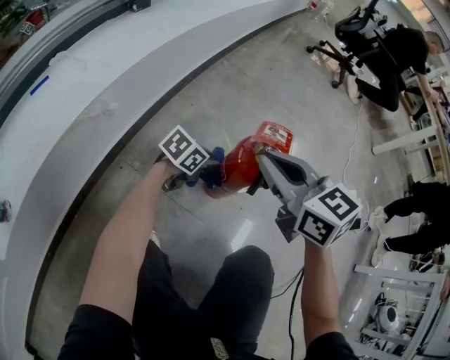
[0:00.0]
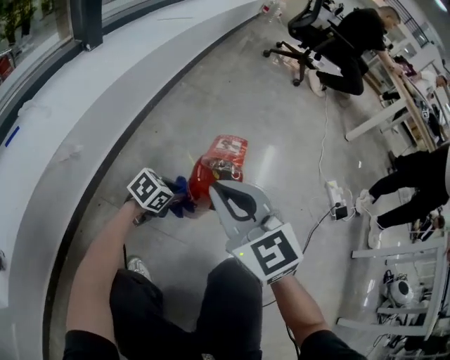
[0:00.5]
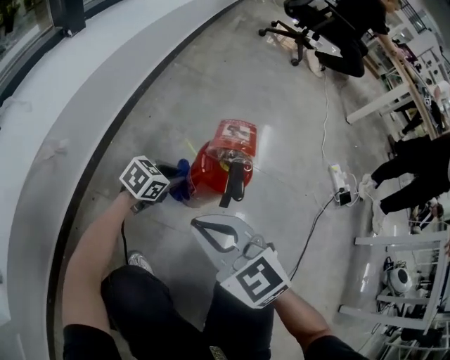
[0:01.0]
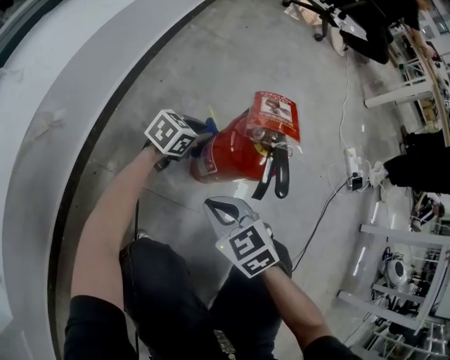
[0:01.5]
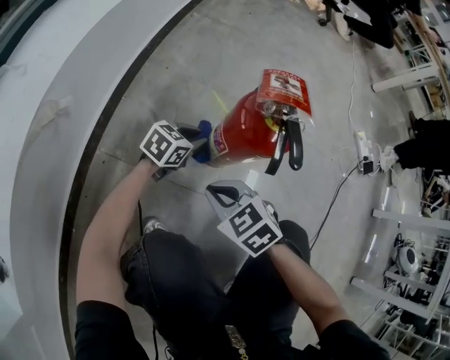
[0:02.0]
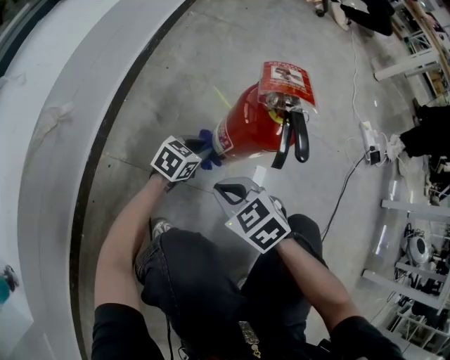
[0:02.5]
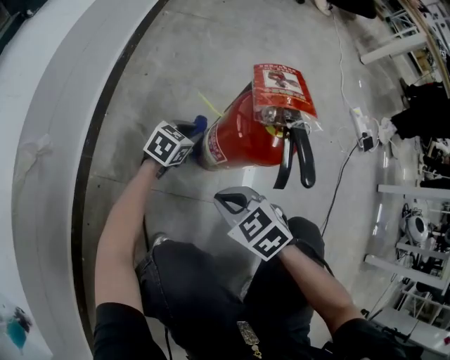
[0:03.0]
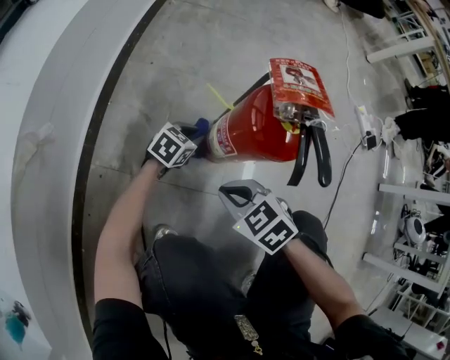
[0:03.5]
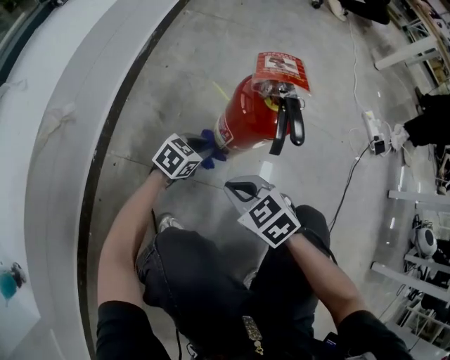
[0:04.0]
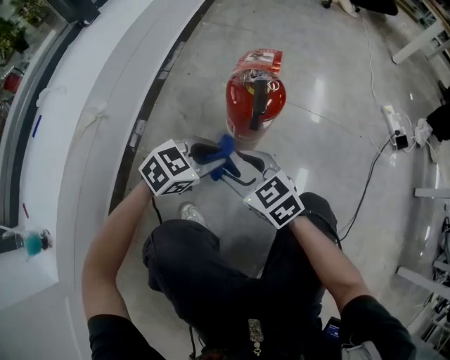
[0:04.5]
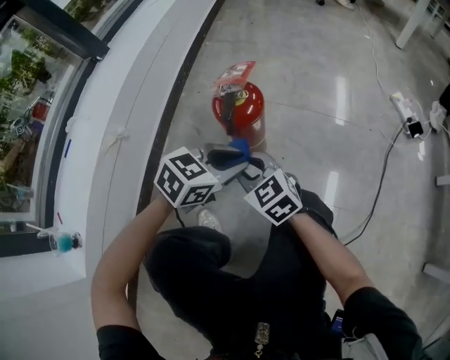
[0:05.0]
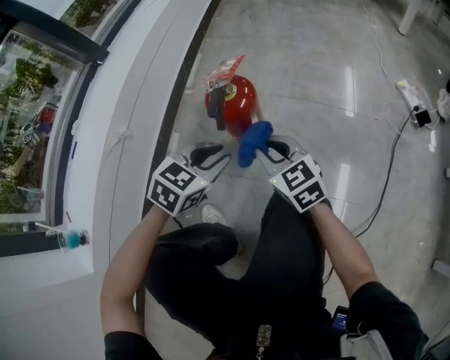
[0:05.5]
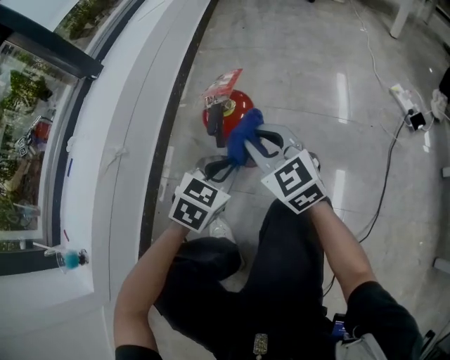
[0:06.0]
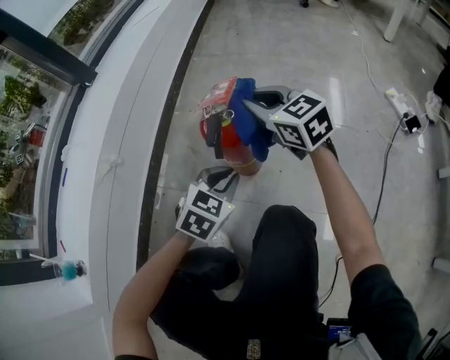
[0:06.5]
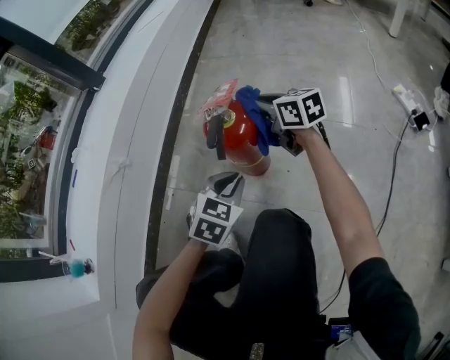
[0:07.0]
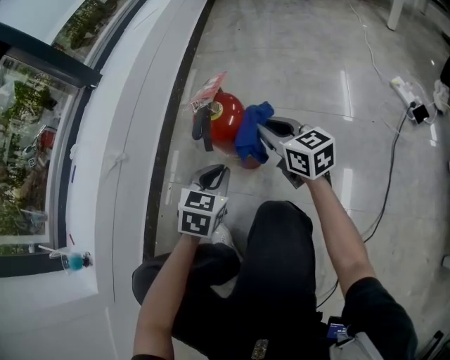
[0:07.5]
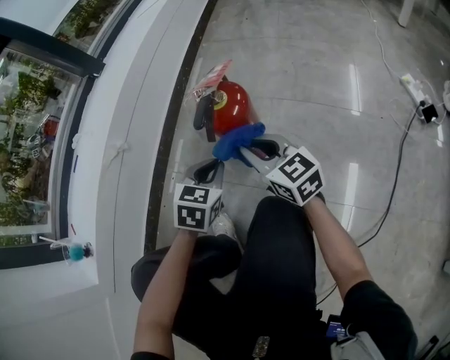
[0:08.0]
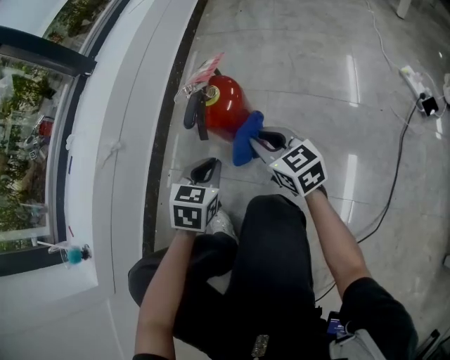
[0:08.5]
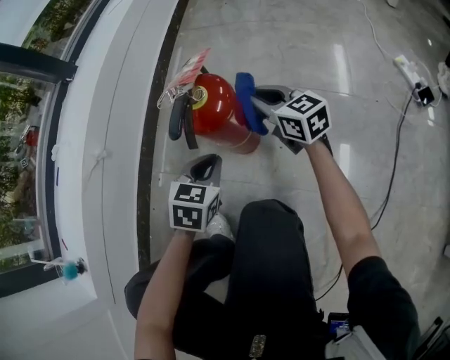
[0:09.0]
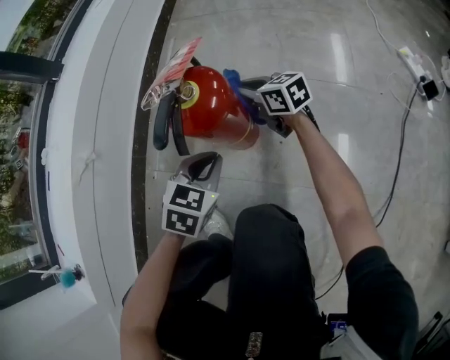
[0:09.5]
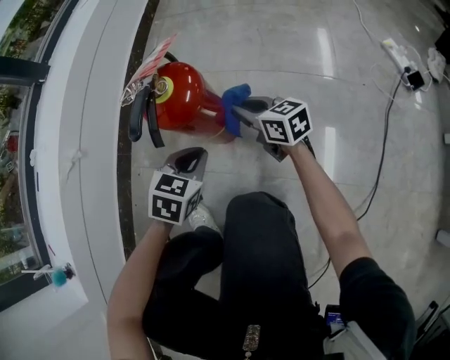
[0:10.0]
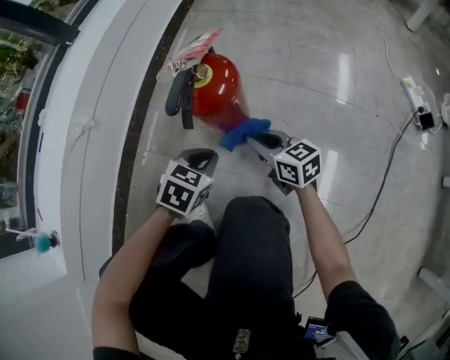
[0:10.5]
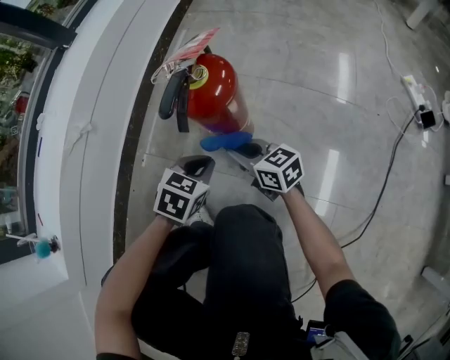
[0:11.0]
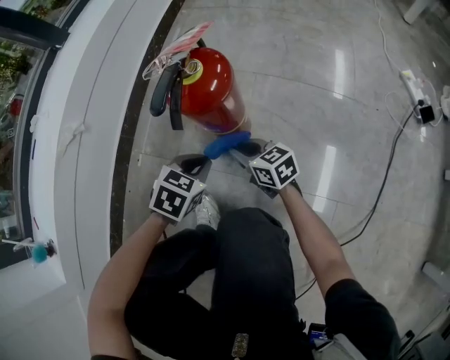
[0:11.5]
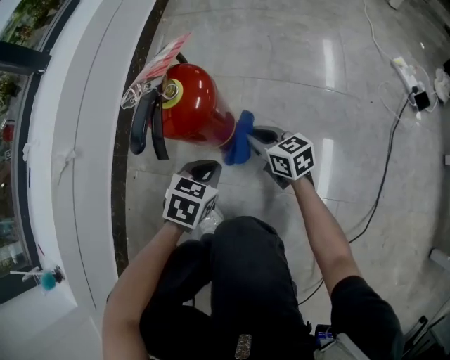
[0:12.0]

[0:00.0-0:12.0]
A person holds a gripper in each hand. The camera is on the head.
0:00.0 to 0:02.0: The left gripper goes some 10 cm downward; the right gripper shifts about 30 cm downward and backward, and changes its angle by roughly 30 degrees.
0:02.0 to 0:04.0: The left gripper moves about 5 cm.
0:04.0 to 0:06.0: The right gripper heads upward, forward and to the right, covering some 20 cm, points its fingers approximately 40 degrees further upward, and opens, then closes again. The left gripper goes roughly 25 cm upward, and swivels about 20 degrees.
0:06.0 to 0:08.0: The left gripper ends up some 5 cm from where it was, and changes its angle by roughly 20 degrees, while the right gripper is displaced downward by about 5 cm, goes forward and returns, about 15 cm each way, and rotates roughly 20 degrees.
0:08.0 to 0:10.0: The left gripper moves downward, approximately 5 cm; the right gripper goes about 15 cm downward, forward and to the right.
0:10.0 to 0:12.0: Both grippers move downward, some 5 cm. The right gripper travels to the left and back again, approximately 10 cm each way.

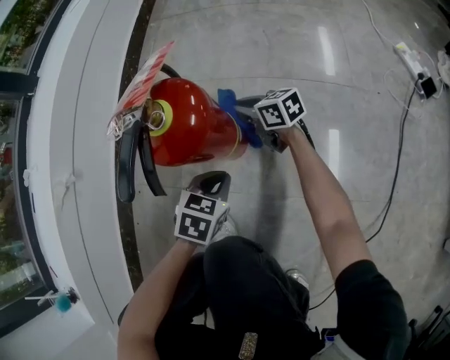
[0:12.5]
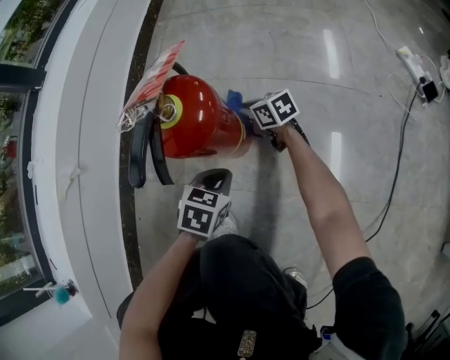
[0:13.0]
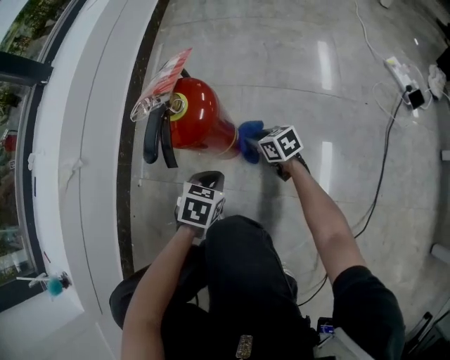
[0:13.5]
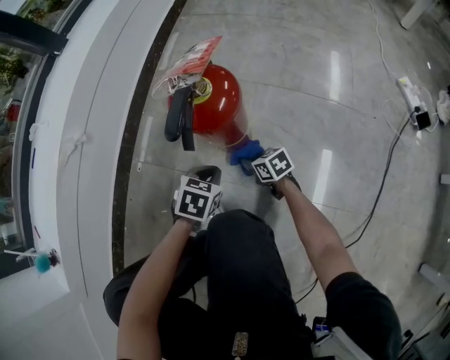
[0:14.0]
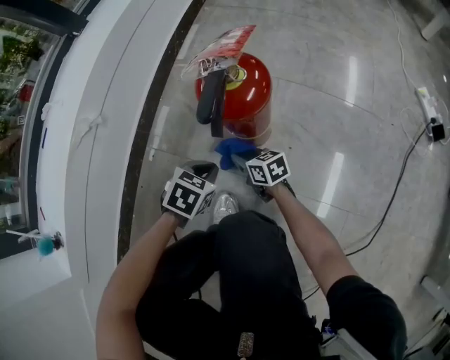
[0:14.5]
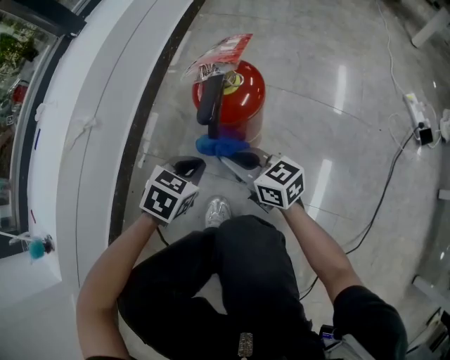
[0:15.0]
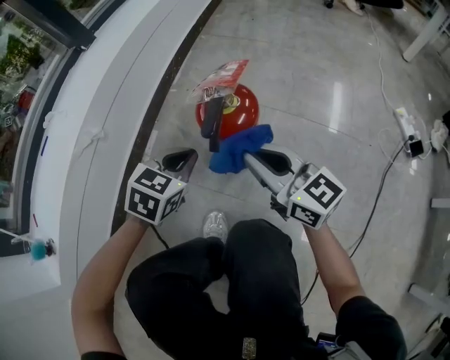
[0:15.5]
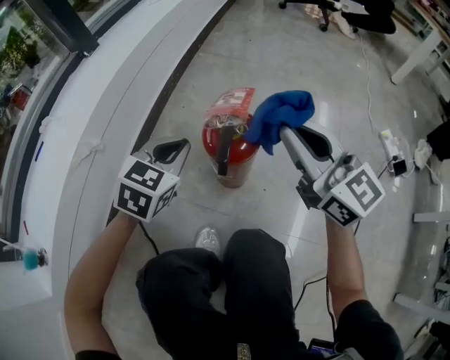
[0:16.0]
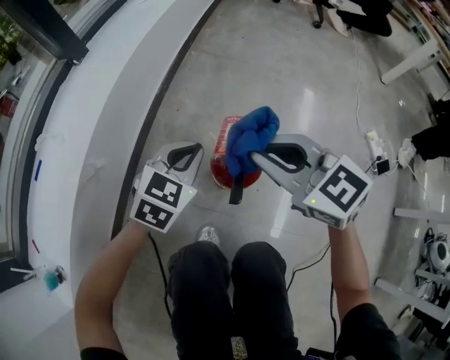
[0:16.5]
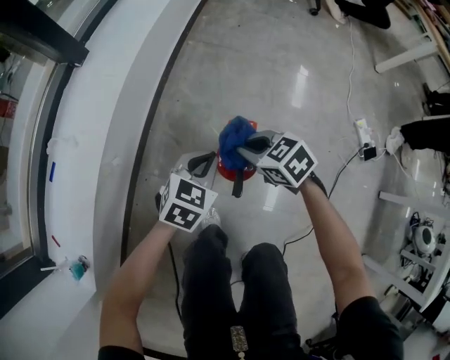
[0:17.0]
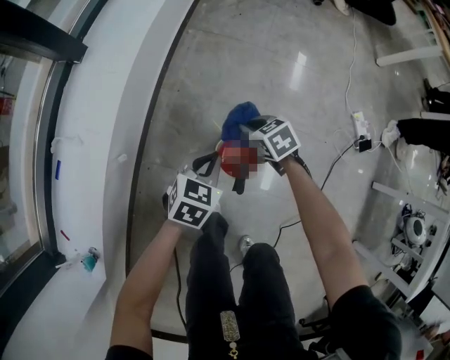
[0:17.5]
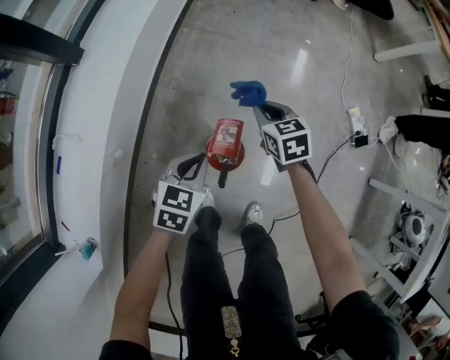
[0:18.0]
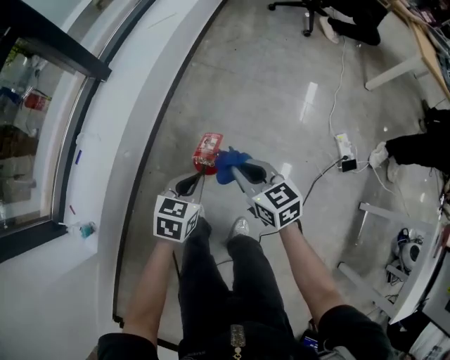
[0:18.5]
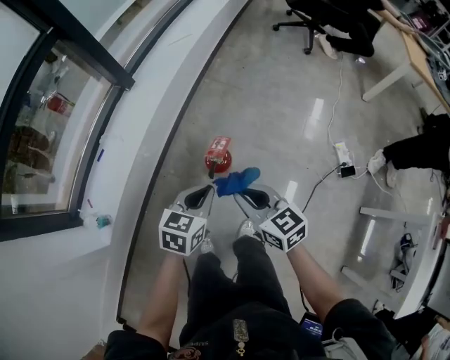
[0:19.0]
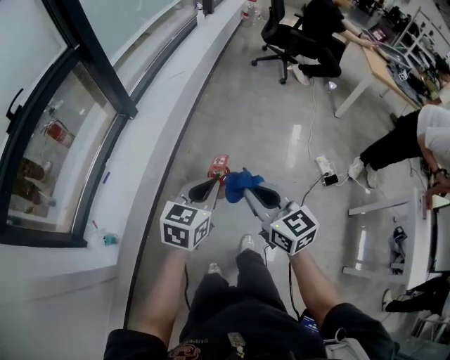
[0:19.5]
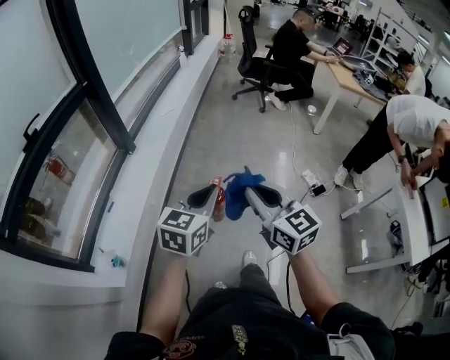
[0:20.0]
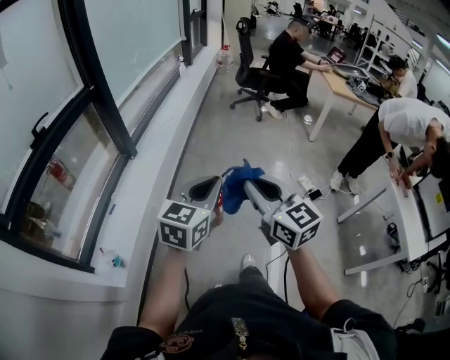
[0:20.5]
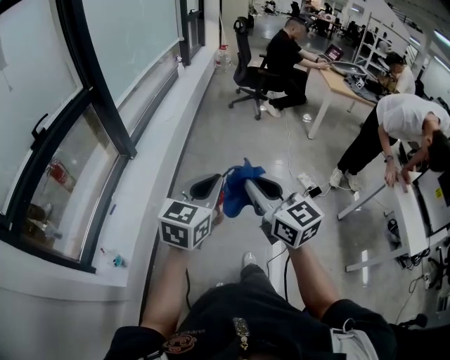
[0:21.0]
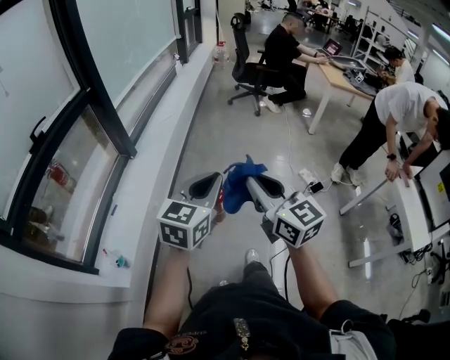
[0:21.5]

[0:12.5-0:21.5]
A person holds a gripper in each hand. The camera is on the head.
0:12.5 to 0:14.5: The left gripper goes approximately 10 cm to the left, while the right gripper travels backward and to the left by some 20 cm.
0:14.5 to 0:17.0: The left gripper is displaced upward and forward by roughly 35 cm, and changes its angle by some 20 degrees. Meanwhile the right gripper goes about 40 cm upward, and swivels some 30 degrees.
0:17.0 to 0:19.5: Both grippers travel together upward and backward, approximately 50 cm. The right gripper points its fingers about 30 degrees further upward. The left gripper turns by roughly 20 degrees.
0:19.5 to 0:21.5: The two grippers go about 20 cm upward and backward.

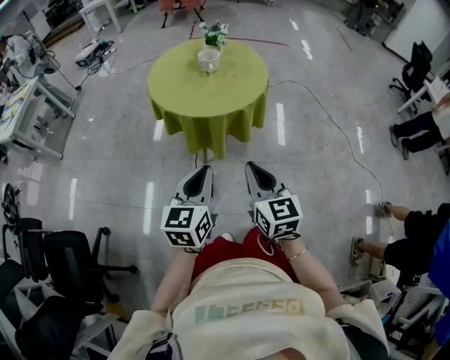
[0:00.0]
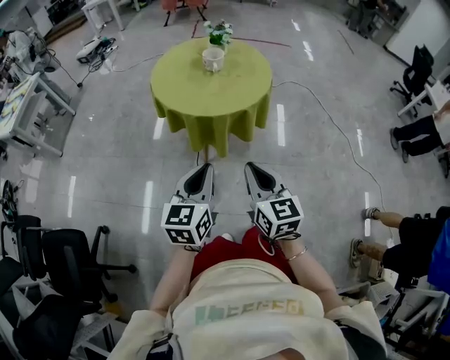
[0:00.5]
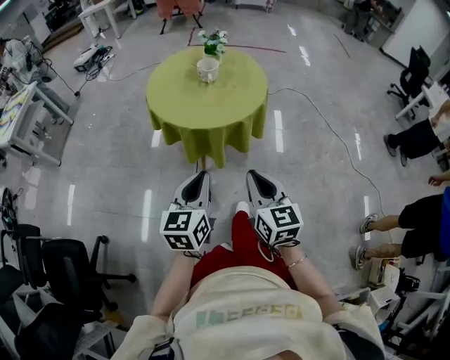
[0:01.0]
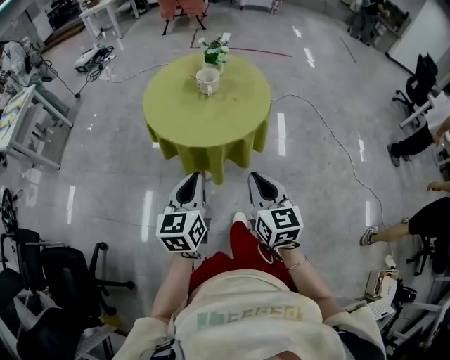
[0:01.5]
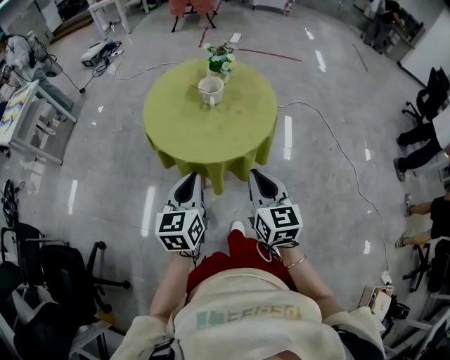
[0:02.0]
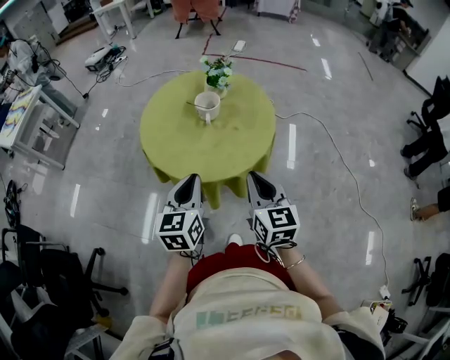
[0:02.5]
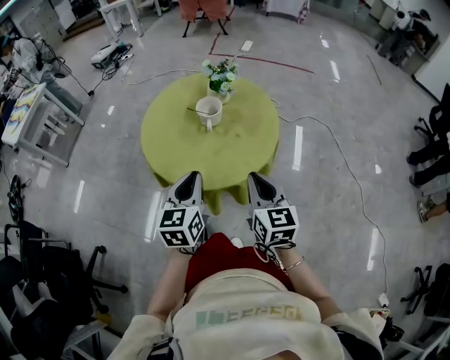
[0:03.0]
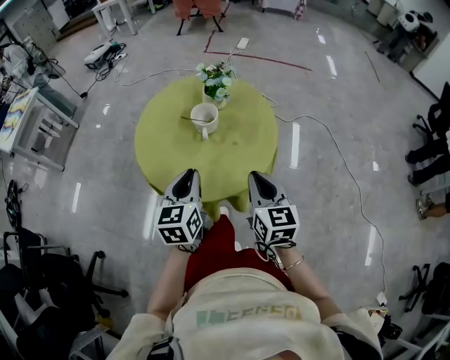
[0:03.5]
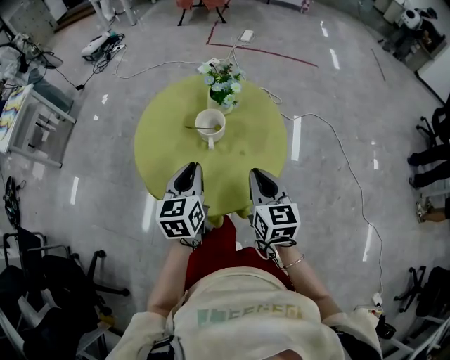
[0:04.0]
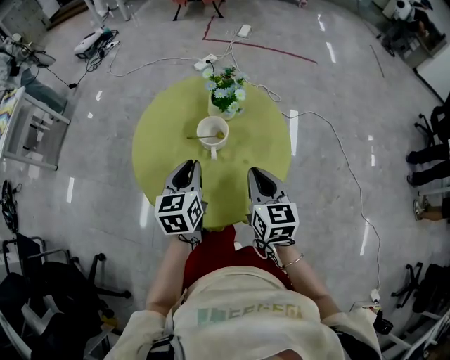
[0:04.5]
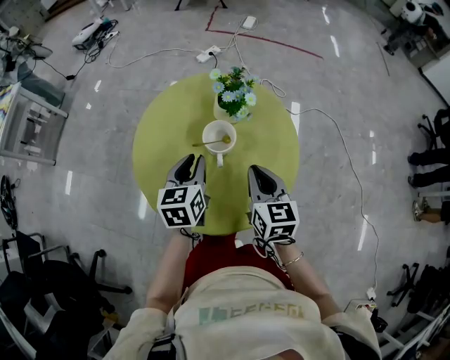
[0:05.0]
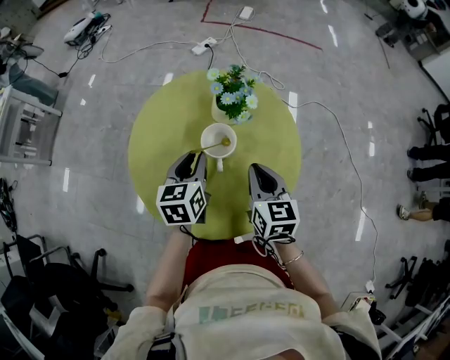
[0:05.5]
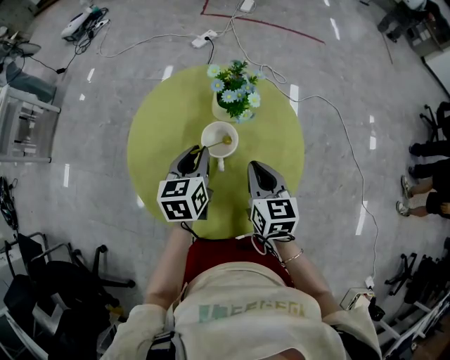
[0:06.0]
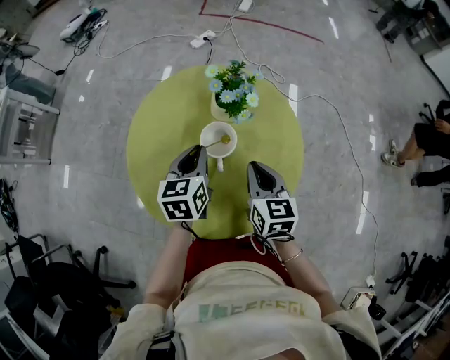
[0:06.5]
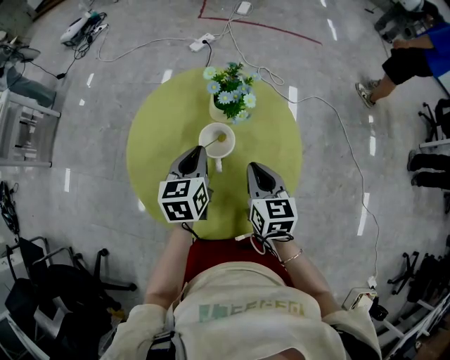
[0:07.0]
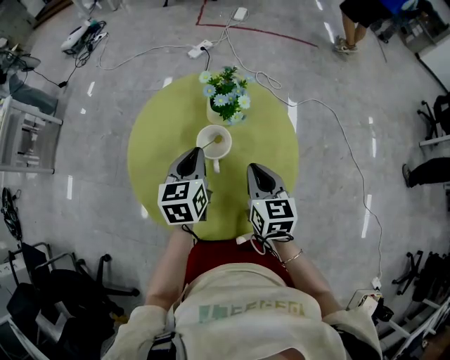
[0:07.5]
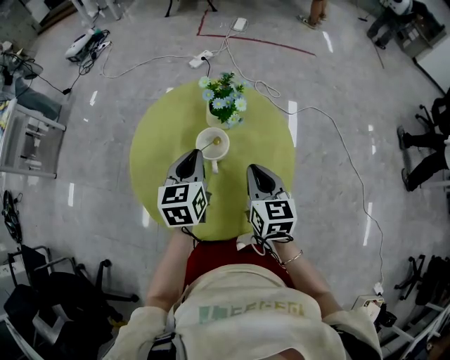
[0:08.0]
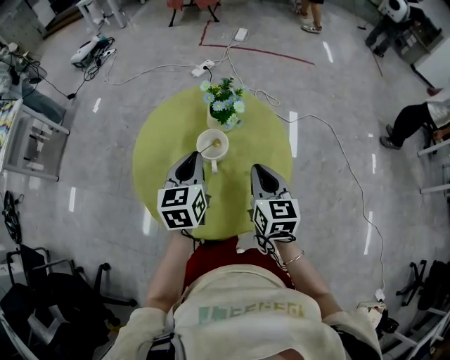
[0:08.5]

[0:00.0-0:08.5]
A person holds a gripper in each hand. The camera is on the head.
0:00.0 to 0:02.0: Both grippers move forward, about 20 cm.
0:02.0 to 0:04.0: Both grippers travel together forward, roughly 25 cm.
0:04.0 to 0:06.5: The right gripper travels forward and downward by some 15 cm. Meanwhile the left gripper is displaced forward by some 15 cm.
0:06.5 to 0:08.5: The two grippers go some 5 cm upward.
